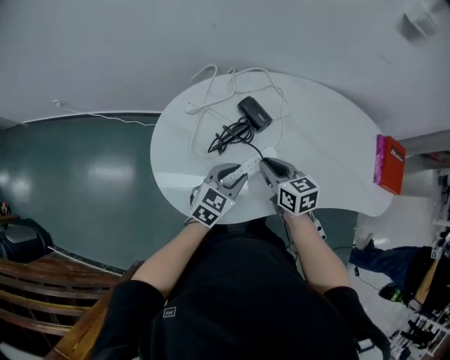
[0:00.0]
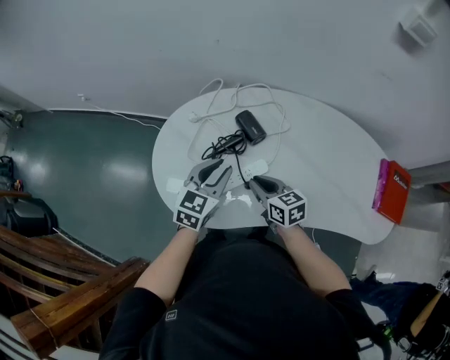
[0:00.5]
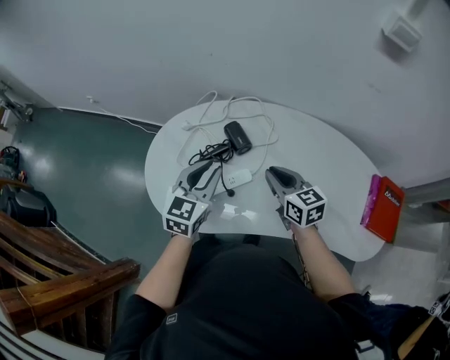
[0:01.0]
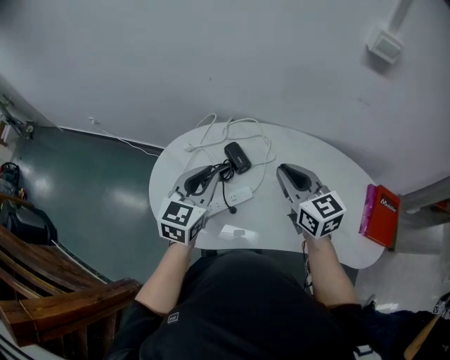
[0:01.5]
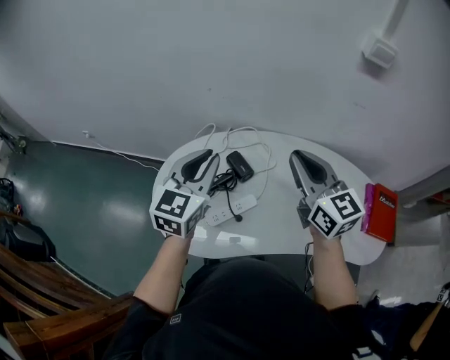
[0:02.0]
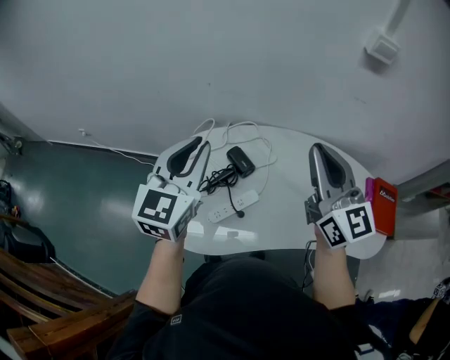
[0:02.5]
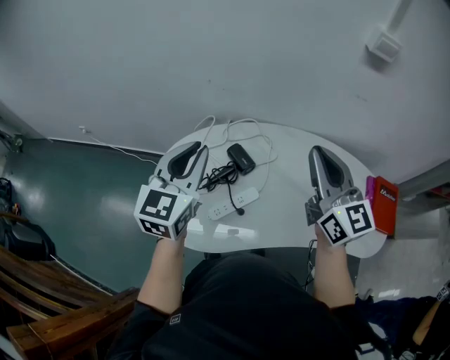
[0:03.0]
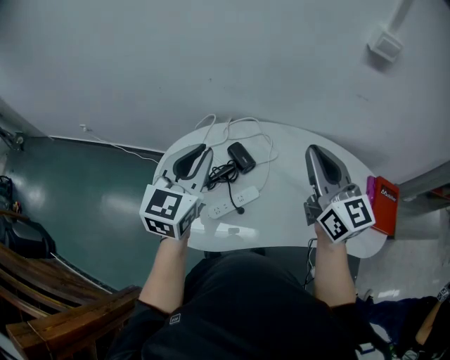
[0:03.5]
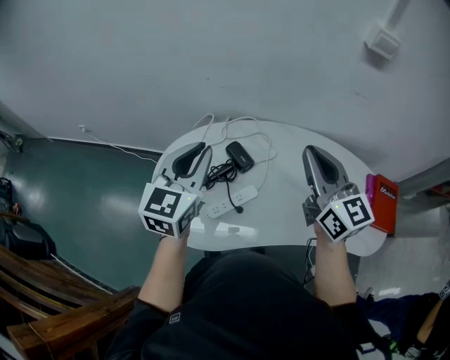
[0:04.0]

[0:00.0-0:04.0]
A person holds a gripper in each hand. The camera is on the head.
0:00.0 to 0:02.0: The two grippers go approximately 30 cm upward. The right gripper points its fingers about 30 degrees further upward. Meanwhile the left gripper changes its angle by about 30 degrees.

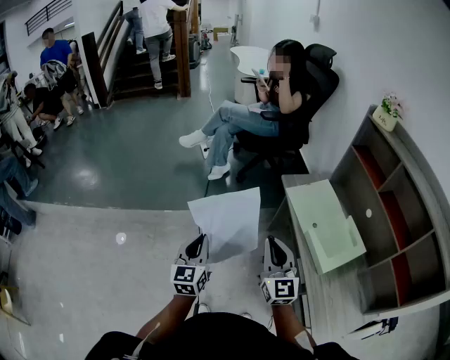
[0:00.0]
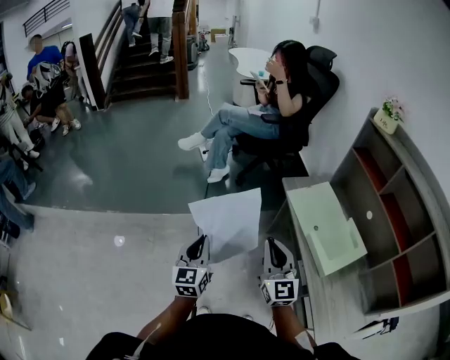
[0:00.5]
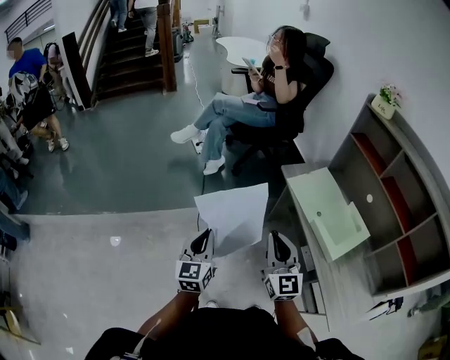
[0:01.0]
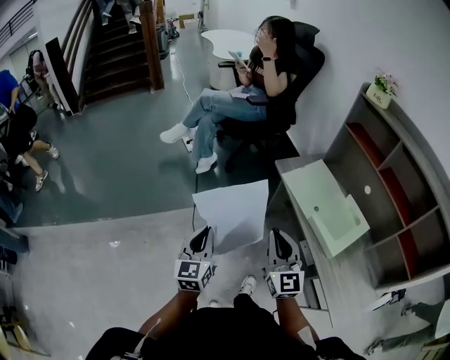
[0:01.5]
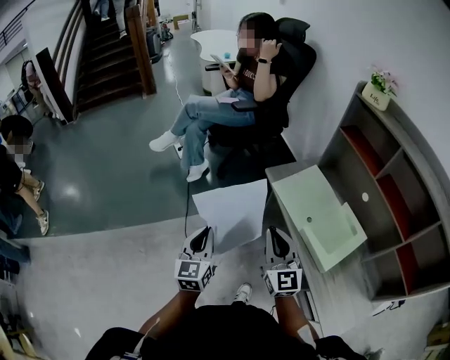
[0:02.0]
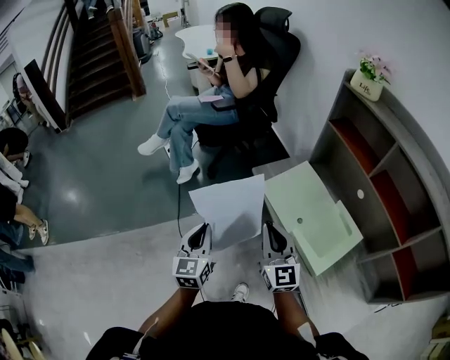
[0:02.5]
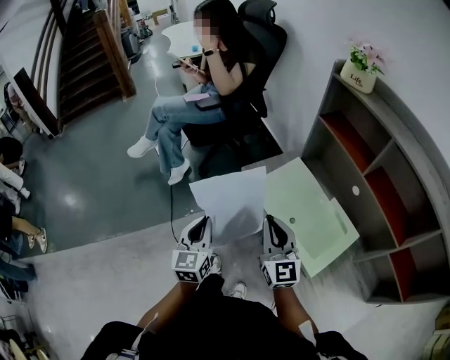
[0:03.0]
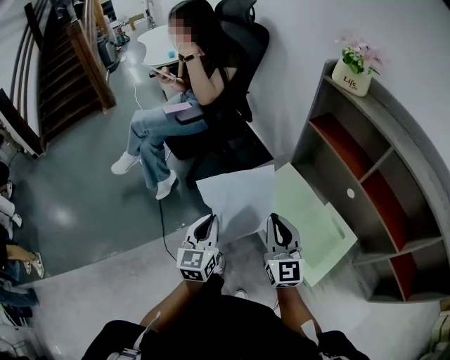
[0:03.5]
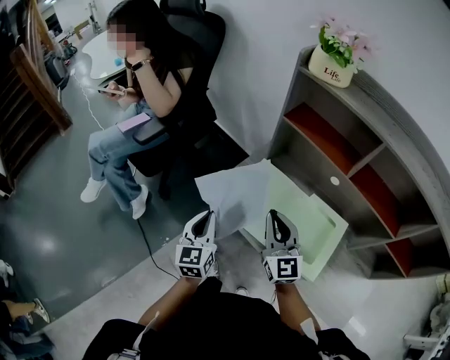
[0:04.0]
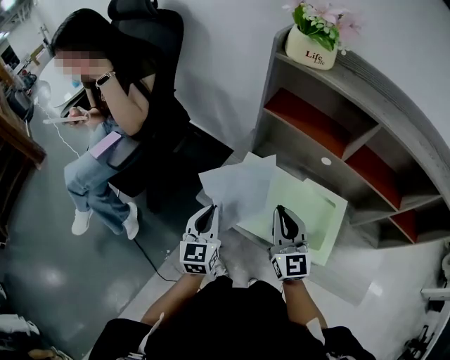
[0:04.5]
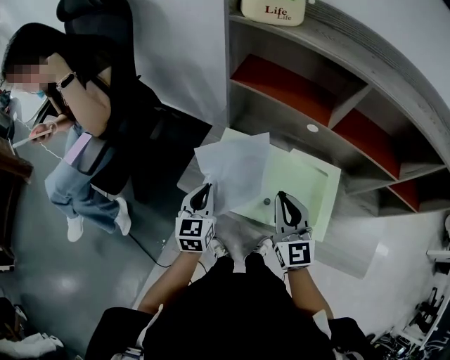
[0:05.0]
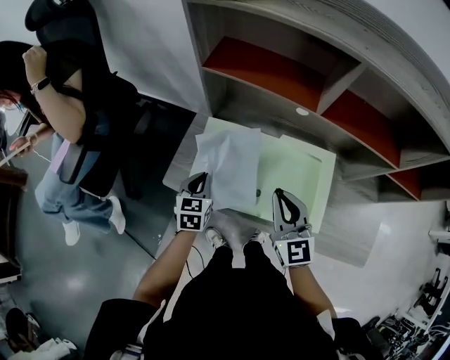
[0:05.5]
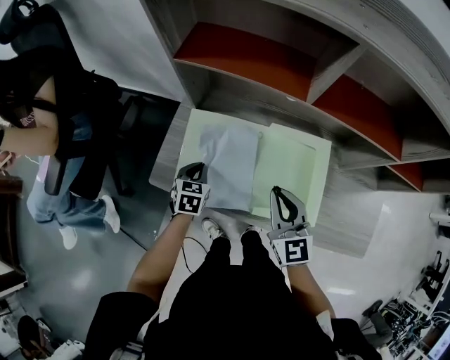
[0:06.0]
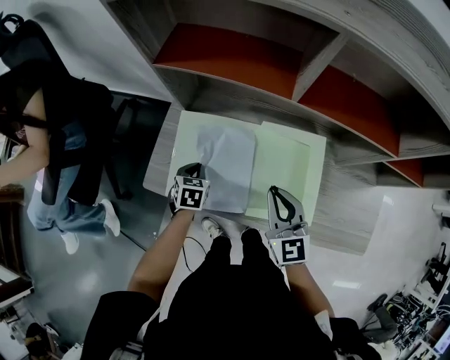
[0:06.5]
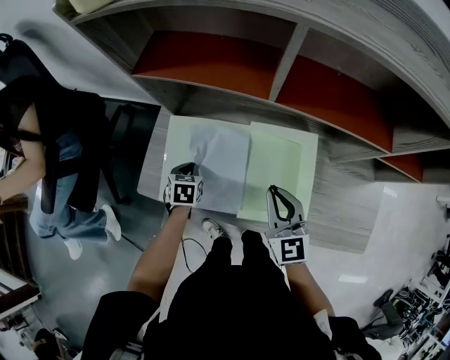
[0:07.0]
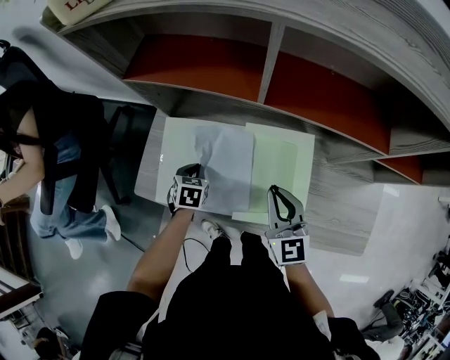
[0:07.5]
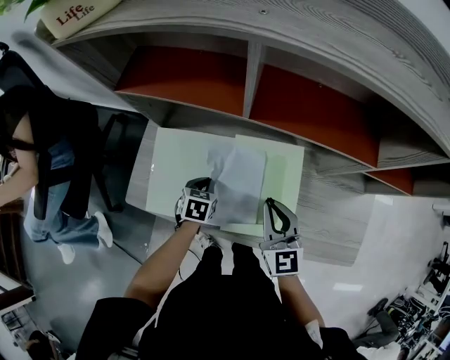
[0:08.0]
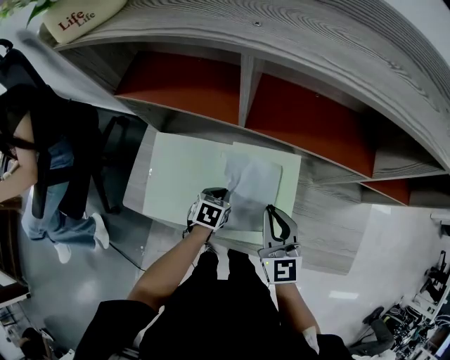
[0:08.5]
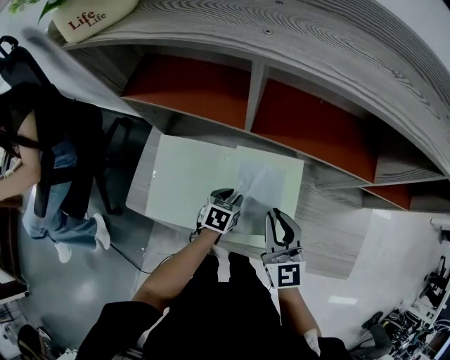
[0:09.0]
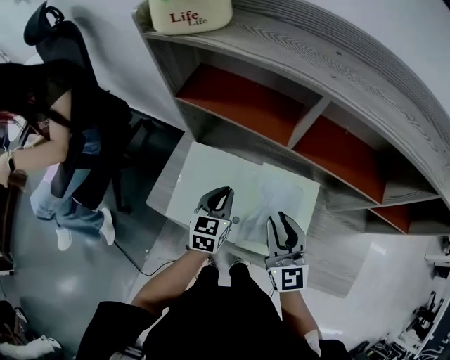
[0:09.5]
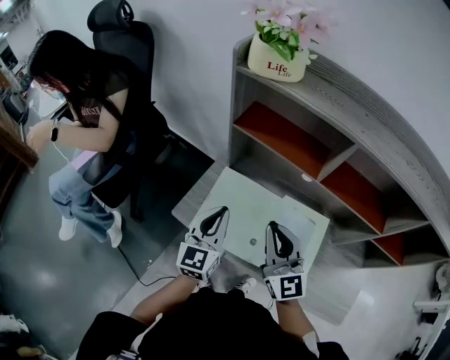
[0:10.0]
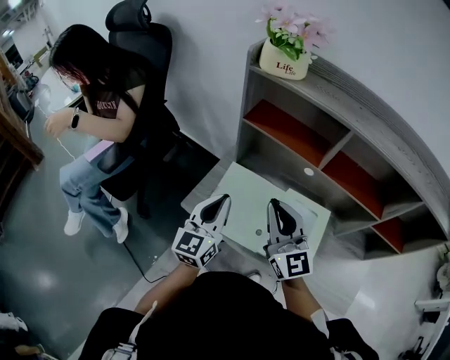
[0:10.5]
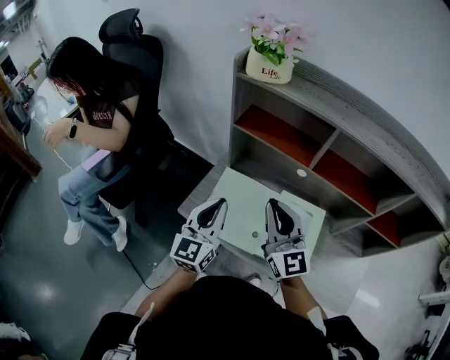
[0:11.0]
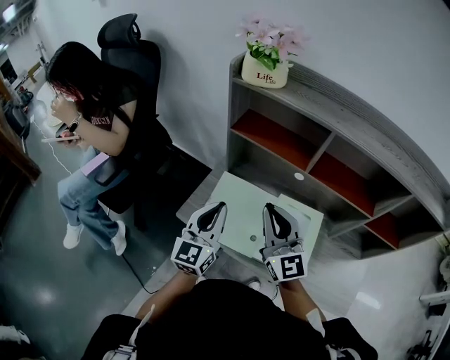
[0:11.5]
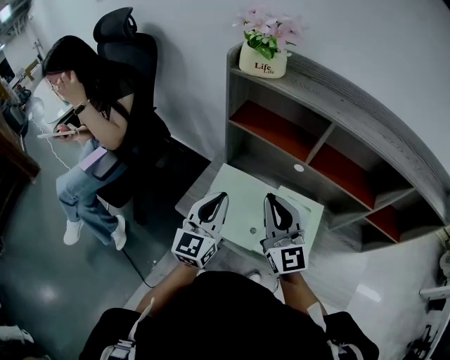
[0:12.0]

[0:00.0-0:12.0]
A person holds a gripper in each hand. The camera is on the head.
0:00.0 to 0:02.0: The left gripper is displaced forward and to the right by approximately 15 cm. Meanwhile the right gripper is displaced forward by about 10 cm.
0:02.0 to 0:04.0: The left gripper ends up roughly 35 cm from where it was, and rotates roughly 30 degrees. The right gripper moves roughly 30 cm, and turns by approximately 30 degrees.
0:04.0 to 0:06.0: The right gripper ends up some 20 cm from where it was, and turns by about 30 degrees, while the left gripper is displaced downward by about 25 cm, and angles its fingers downward, by about 40 degrees.
0:06.0 to 0:08.0: The grippers both shift to the right by some 10 cm.
0:08.0 to 0:10.0: The left gripper goes approximately 30 cm upward, angles its fingers upward, by some 50 degrees, and opens, then closes again. The right gripper goes roughly 20 cm upward, swivels roughly 30 degrees, and opens and closes again.
0:10.0 to 0:12.0: Both grippers move upward, approximately 5 cm.

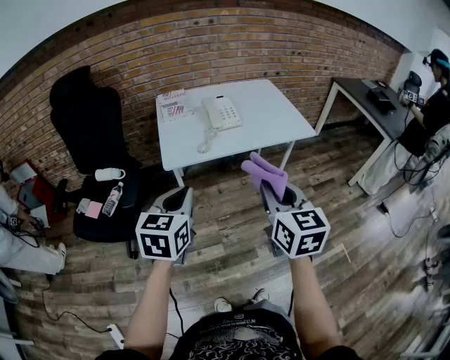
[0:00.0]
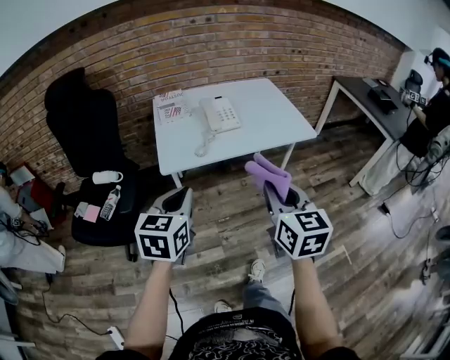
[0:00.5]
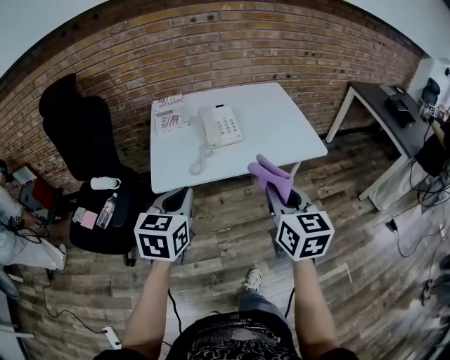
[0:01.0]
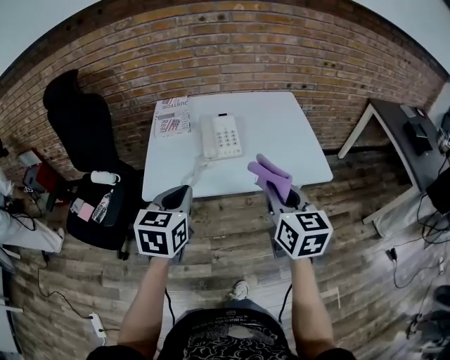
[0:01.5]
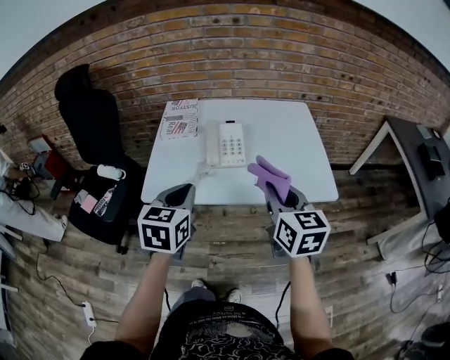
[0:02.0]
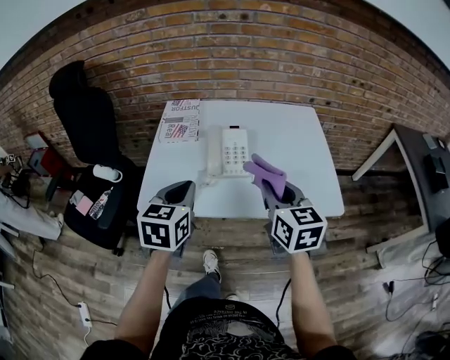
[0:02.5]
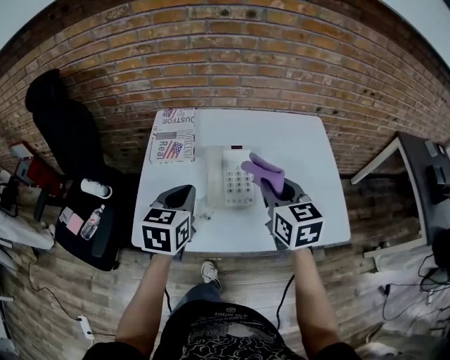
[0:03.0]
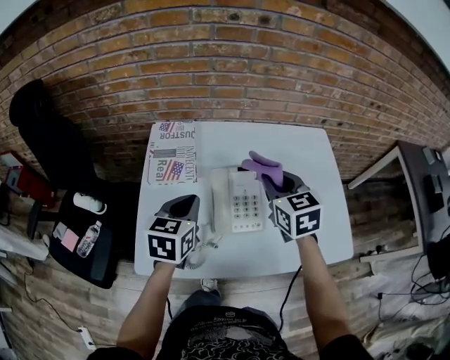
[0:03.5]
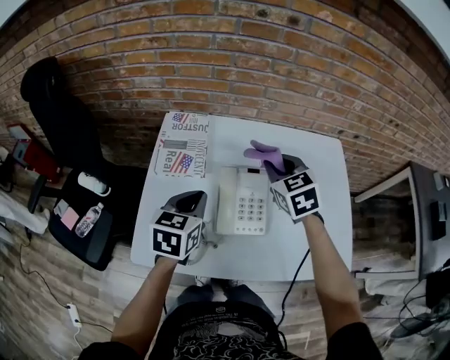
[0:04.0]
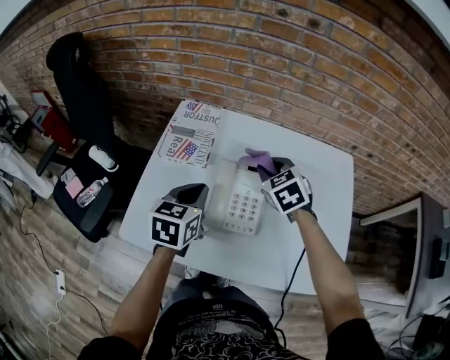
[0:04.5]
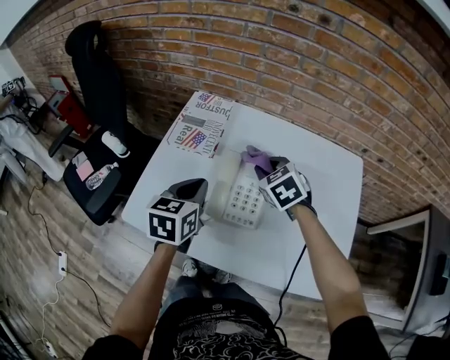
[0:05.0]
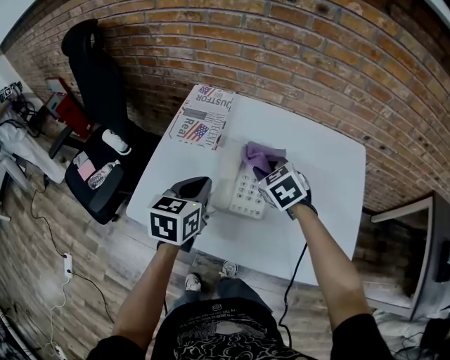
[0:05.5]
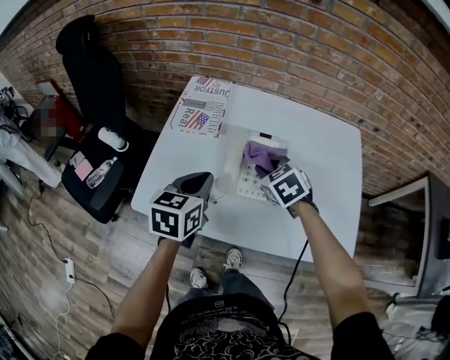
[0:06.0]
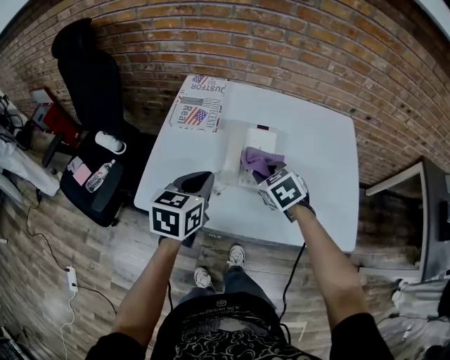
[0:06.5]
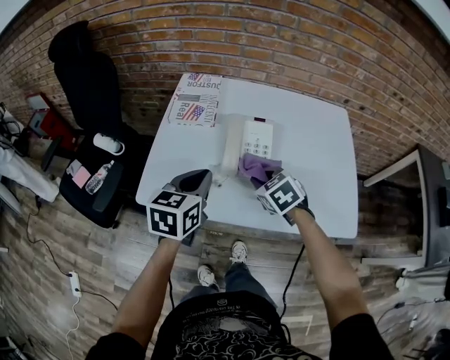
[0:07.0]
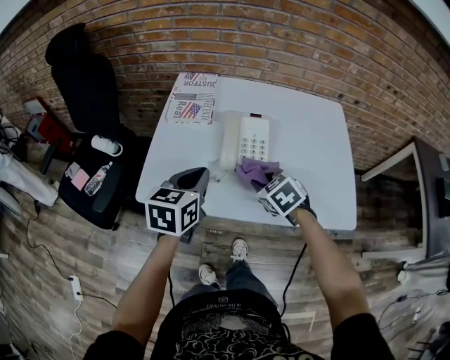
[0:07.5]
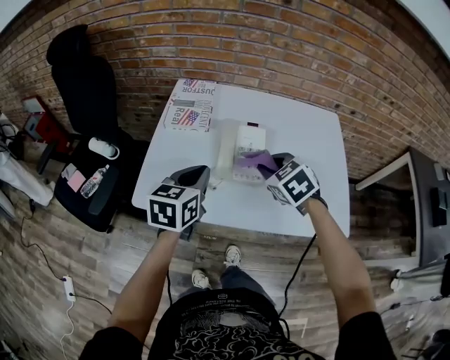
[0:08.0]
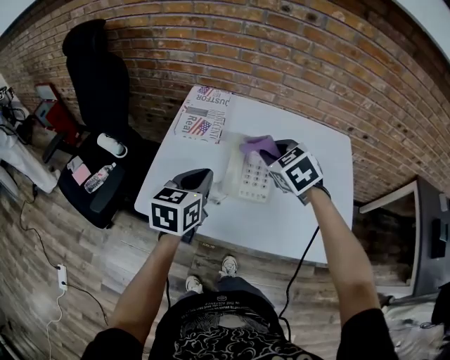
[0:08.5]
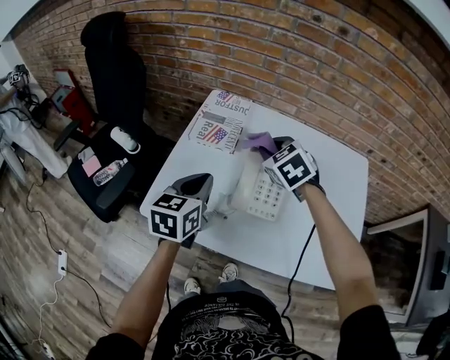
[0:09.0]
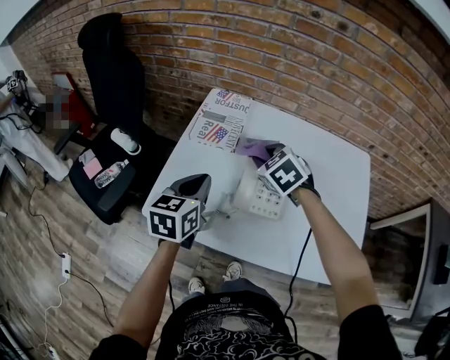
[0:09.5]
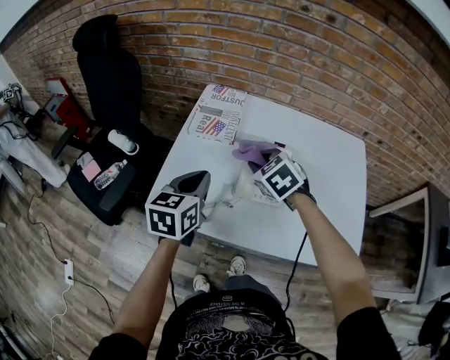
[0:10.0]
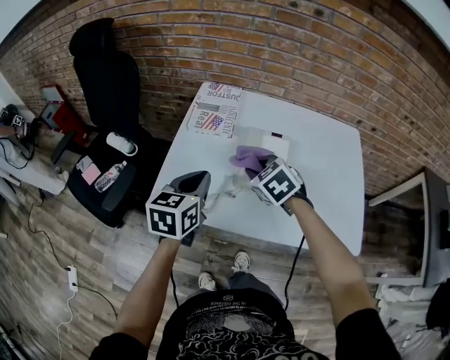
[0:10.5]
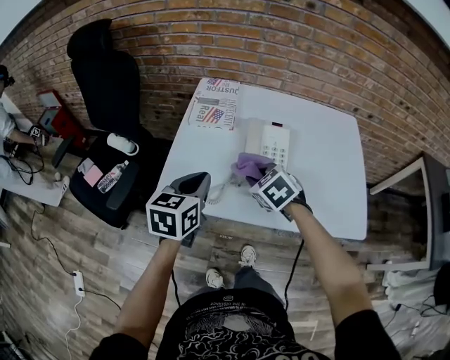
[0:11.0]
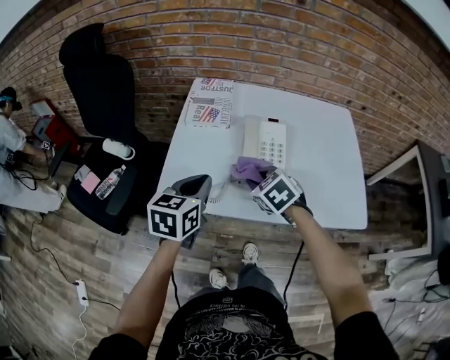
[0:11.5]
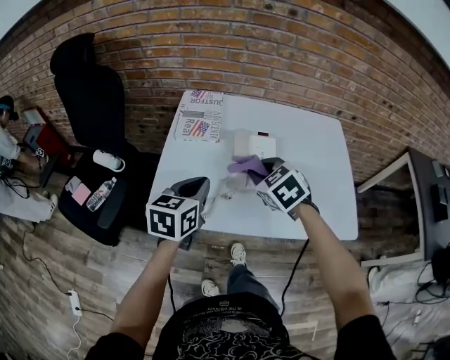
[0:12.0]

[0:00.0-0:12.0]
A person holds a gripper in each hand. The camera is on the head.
0:00.0 to 0:02.0: Both grippers travel together forward and to the right, approximately 30 cm.
0:02.0 to 0:04.0: Both grippers travel together forward, about 35 cm. The right gripper swivels about 40 degrees.
0:04.0 to 0:06.0: The right gripper goes about 15 cm downward and backward, and swivels about 20 degrees. Meanwhile the left gripper shifts roughly 10 cm backward.
0:06.0 to 0:08.0: The right gripper goes about 10 cm backward and upward.
0:08.0 to 0:10.0: The left gripper heads to the left, covering approximately 5 cm, while the right gripper goes about 15 cm forward and to the left.
0:10.0 to 0:12.0: The right gripper goes roughly 10 cm backward.
